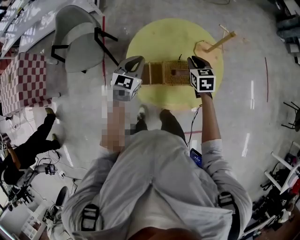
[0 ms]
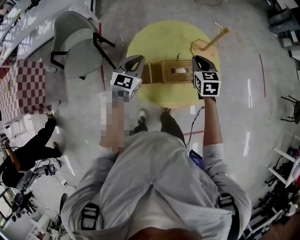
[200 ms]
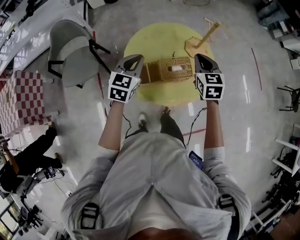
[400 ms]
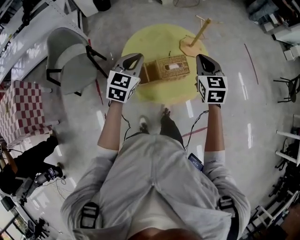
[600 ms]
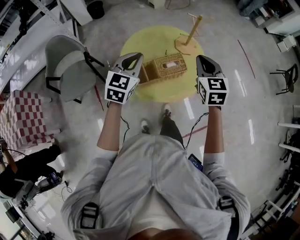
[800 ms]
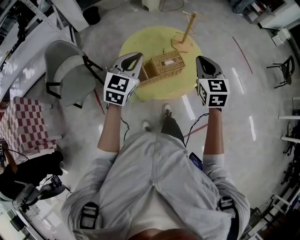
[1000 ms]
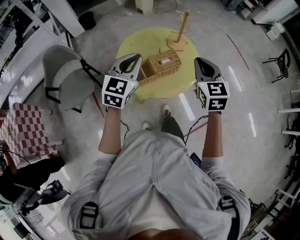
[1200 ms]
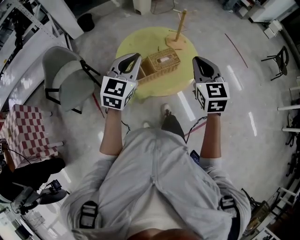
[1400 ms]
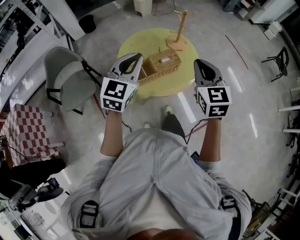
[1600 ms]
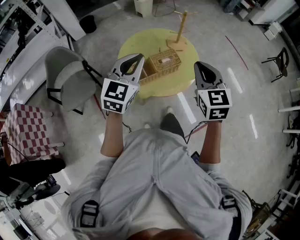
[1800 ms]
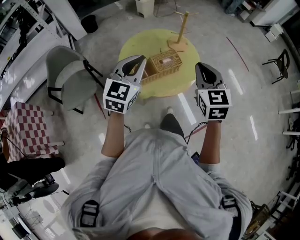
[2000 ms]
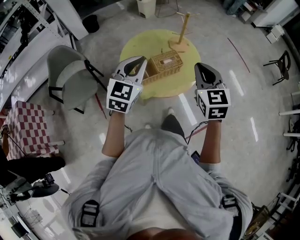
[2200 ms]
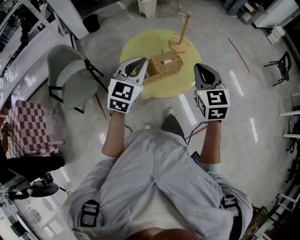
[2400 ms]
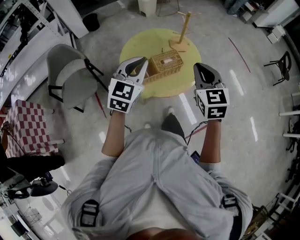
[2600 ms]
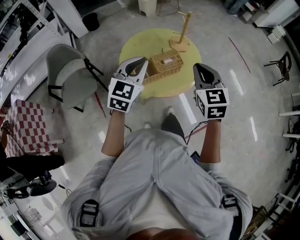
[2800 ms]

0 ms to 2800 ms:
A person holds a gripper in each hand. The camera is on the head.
0 ms to 1400 ms: The left gripper travels upward and backward by roughly 20 cm, and swivels about 30 degrees. The right gripper moves upward and backward, approximately 35 cm, and swivels roughly 30 degrees.
1400 ms to 2800 ms: The grippers stay close to where they were, moving slightly.

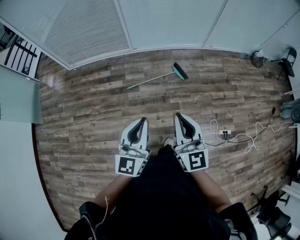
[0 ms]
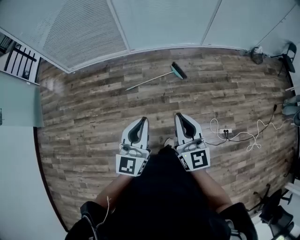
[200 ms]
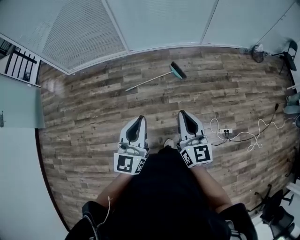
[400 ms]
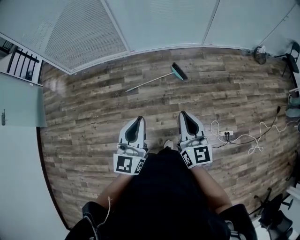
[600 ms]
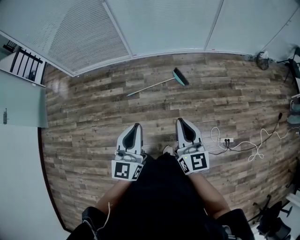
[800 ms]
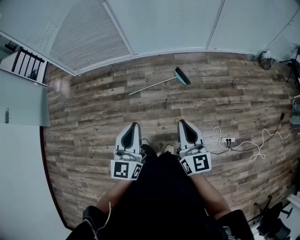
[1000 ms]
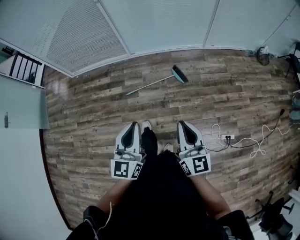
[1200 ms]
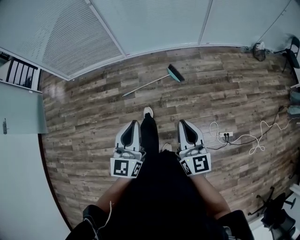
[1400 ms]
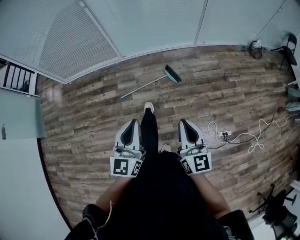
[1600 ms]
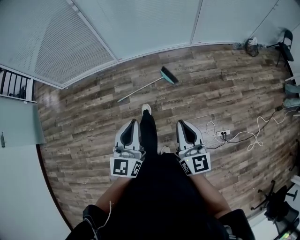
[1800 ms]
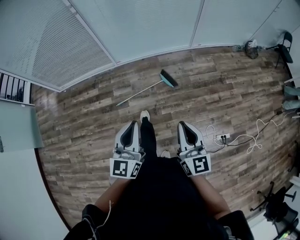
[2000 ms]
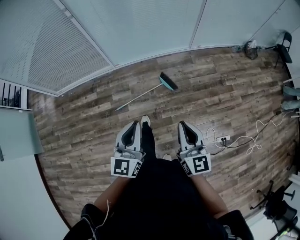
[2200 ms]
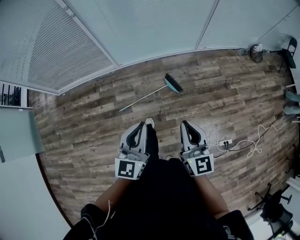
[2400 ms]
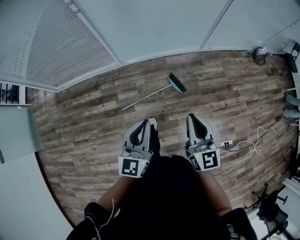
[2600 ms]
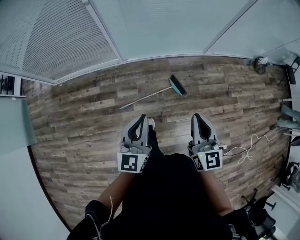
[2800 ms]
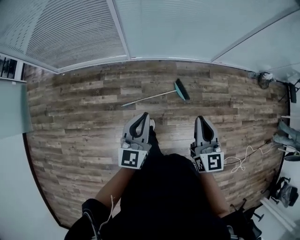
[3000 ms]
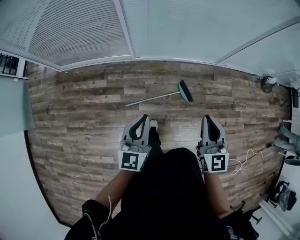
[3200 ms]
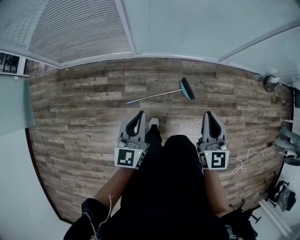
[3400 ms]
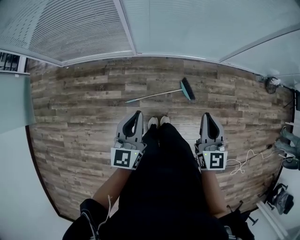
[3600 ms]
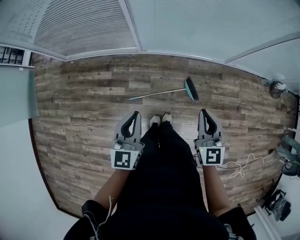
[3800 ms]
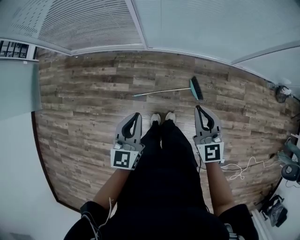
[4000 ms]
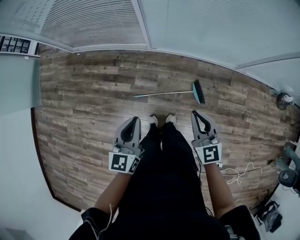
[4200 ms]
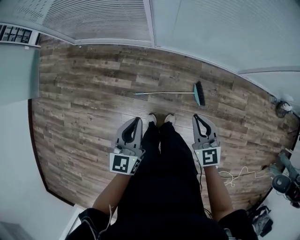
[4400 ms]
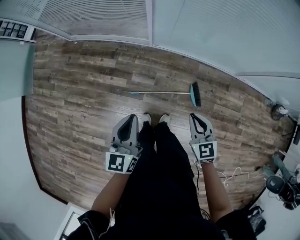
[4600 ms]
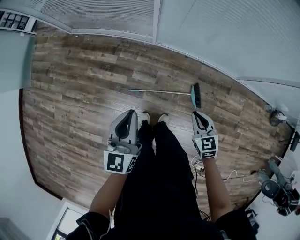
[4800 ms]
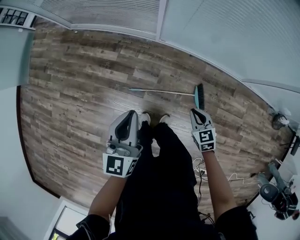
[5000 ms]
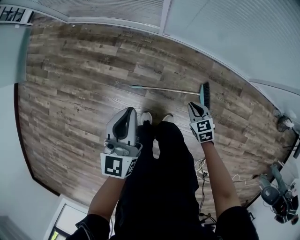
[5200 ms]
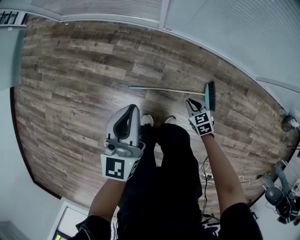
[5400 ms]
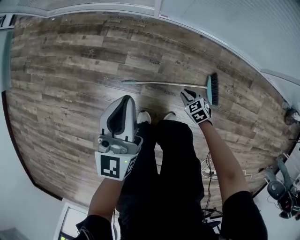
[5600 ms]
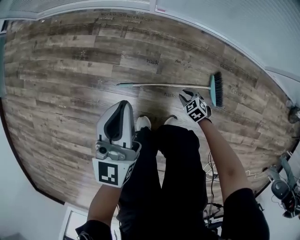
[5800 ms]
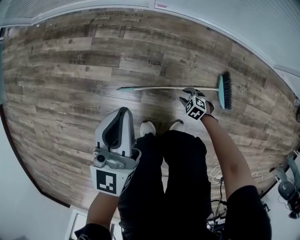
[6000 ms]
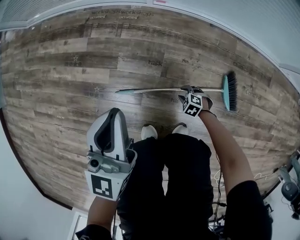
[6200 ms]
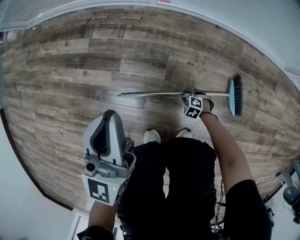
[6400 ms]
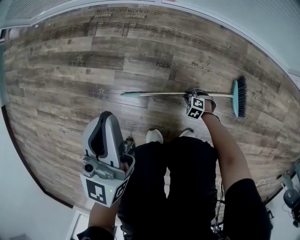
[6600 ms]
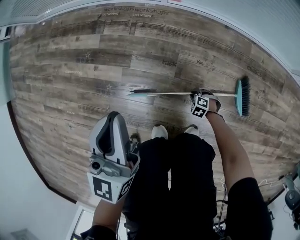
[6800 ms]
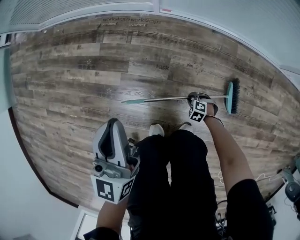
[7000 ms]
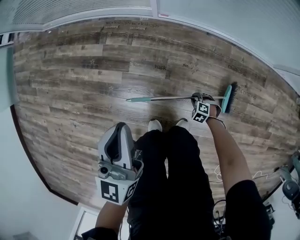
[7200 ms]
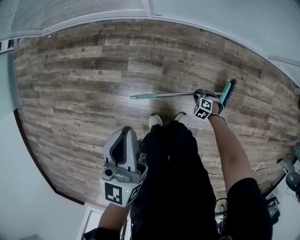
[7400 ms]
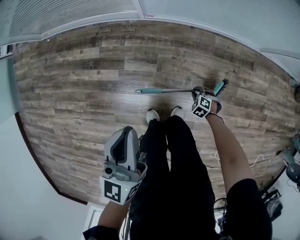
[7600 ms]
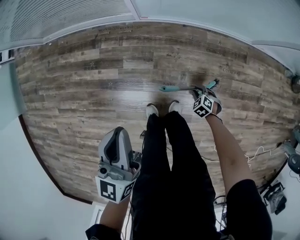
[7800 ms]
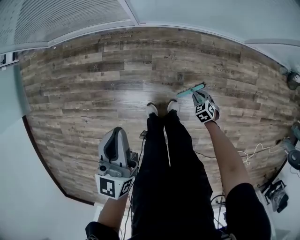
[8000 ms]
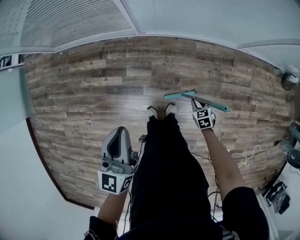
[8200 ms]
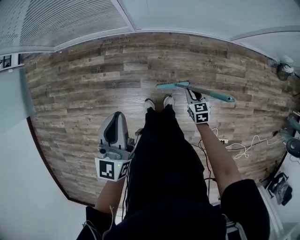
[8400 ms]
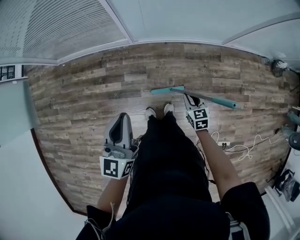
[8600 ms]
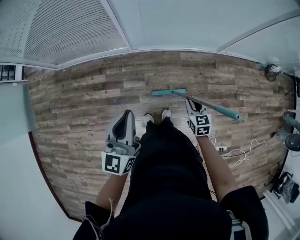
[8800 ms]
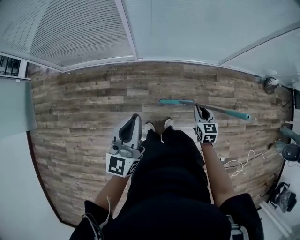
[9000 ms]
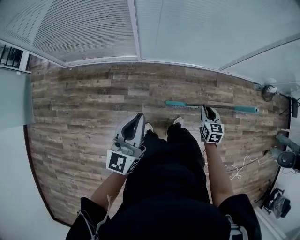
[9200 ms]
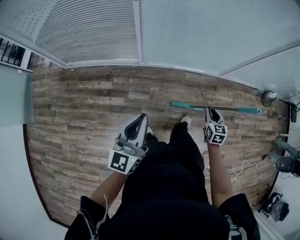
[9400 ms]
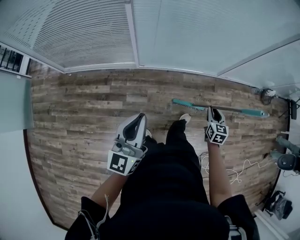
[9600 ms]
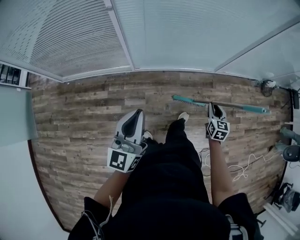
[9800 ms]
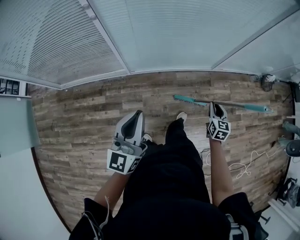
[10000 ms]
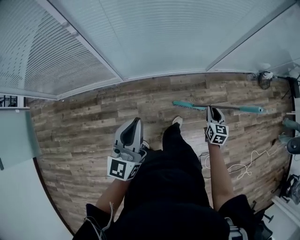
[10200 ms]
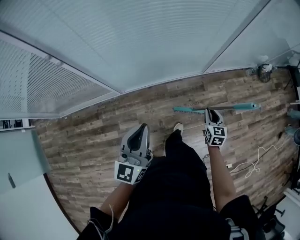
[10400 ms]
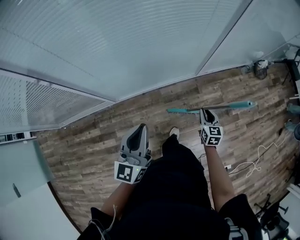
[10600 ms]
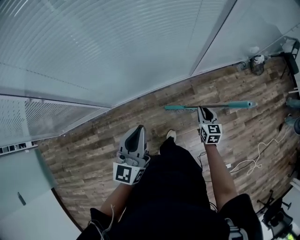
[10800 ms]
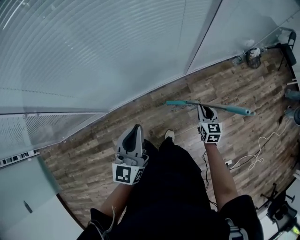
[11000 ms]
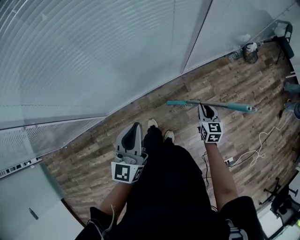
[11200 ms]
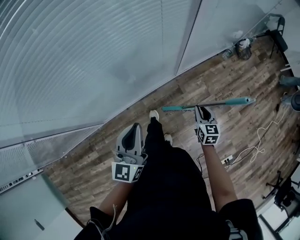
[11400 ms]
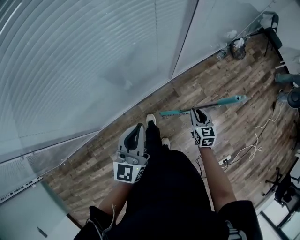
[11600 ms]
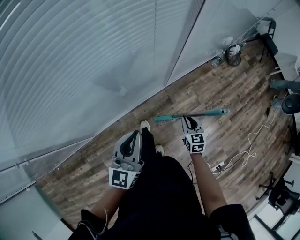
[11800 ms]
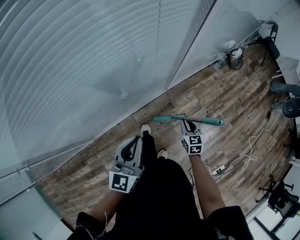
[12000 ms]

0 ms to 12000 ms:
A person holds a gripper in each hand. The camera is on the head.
0 ms to 1600 ms: The right gripper is displaced to the right by some 15 cm; the left gripper heads to the right and forward, covering roughly 15 cm.
1600 ms to 3000 ms: Both grippers move forward and to the left, approximately 35 cm.
3000 ms to 4400 ms: The left gripper shifts approximately 10 cm to the left and forward, while the right gripper shifts approximately 15 cm forward, downward and to the left, and changes its angle by roughly 30 degrees.
4400 ms to 6000 ms: The left gripper moves downward, about 35 cm, while the right gripper shifts some 80 cm downward, points its fingers approximately 50 degrees further downward, and opens its fingers.
6000 ms to 7600 ms: The two grippers go some 15 cm upward.
7600 ms to 9000 ms: The left gripper heads upward, covering about 30 cm, while the right gripper moves upward, about 50 cm, and tips its fingers upward by some 40 degrees.
9000 ms to 10400 ms: The left gripper moves forward and to the right, about 25 cm. The right gripper heads to the right and forward, covering approximately 30 cm, and changes its angle by roughly 20 degrees.
10400 ms to 12000 ms: The right gripper heads forward and to the right, covering approximately 20 cm. Meanwhile the left gripper goes some 35 cm forward and to the right, and changes its angle by about 20 degrees.

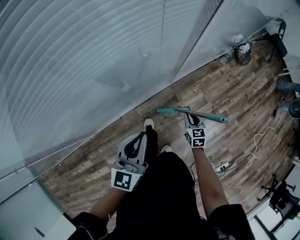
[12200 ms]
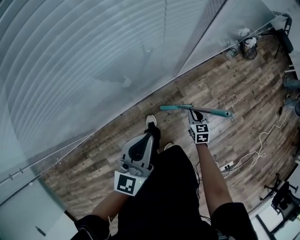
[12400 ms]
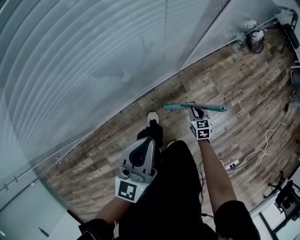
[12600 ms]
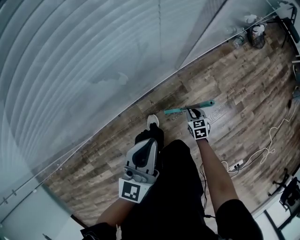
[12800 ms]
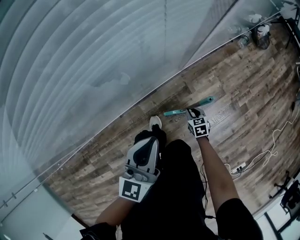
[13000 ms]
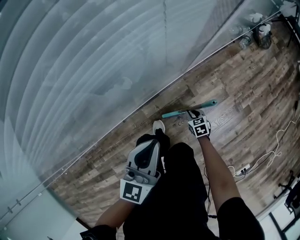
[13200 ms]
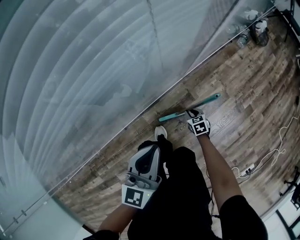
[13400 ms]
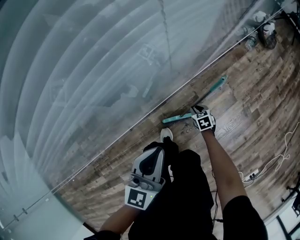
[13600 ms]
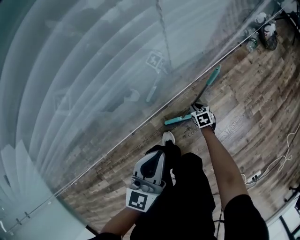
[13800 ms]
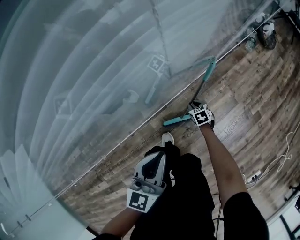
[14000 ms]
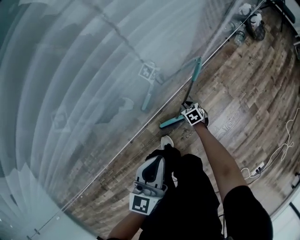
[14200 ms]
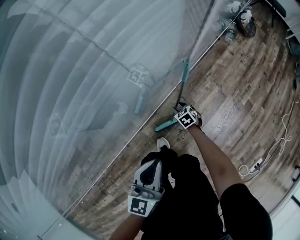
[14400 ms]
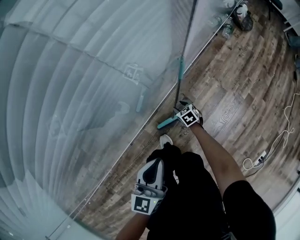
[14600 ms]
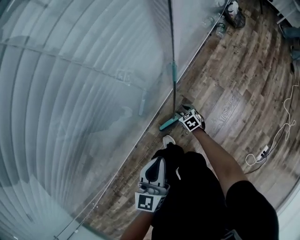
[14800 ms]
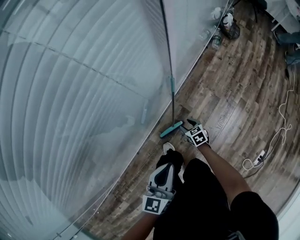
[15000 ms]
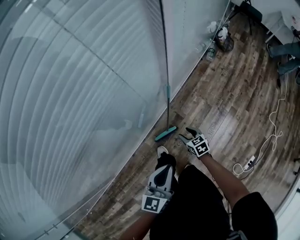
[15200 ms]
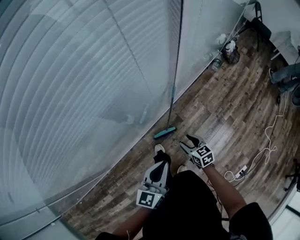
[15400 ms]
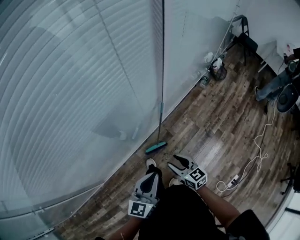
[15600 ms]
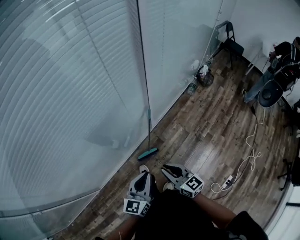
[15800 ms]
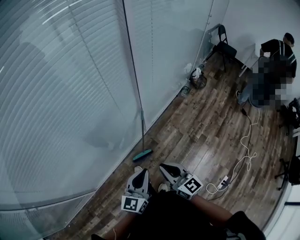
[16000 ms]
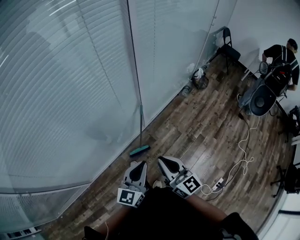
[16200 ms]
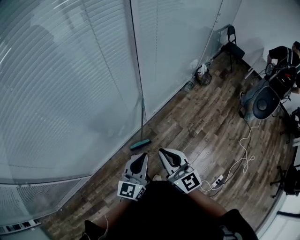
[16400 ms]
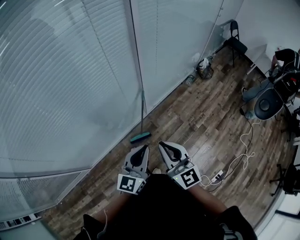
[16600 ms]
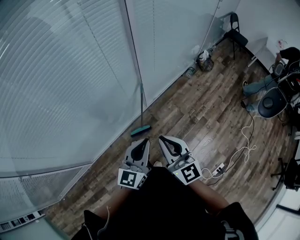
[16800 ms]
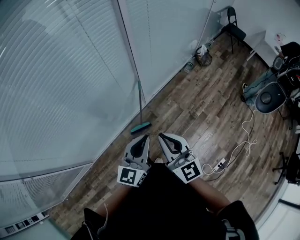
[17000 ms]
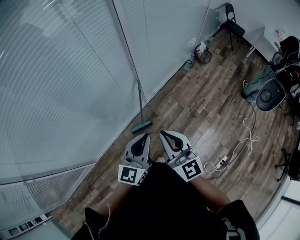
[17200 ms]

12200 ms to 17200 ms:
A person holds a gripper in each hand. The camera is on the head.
12200 ms to 13800 ms: The right gripper shifts about 35 cm downward, and changes its angle by approximately 20 degrees. Meanwhile the left gripper heads downward, covering about 25 cm.
13800 ms to 15600 ms: The right gripper moves upward, roughly 50 cm, tips its fingers upward by approximately 40 degrees, and opens up, while the left gripper heads upward and backward, covering approximately 25 cm.
15600 ms to 17200 ms: The right gripper heads upward, covering some 25 cm, swivels some 40 degrees, and closes its fingers. The left gripper is displaced to the right and upward by roughly 15 cm.

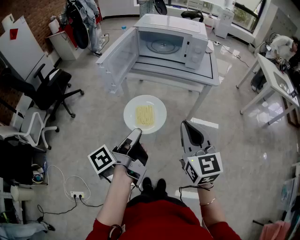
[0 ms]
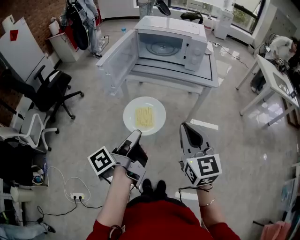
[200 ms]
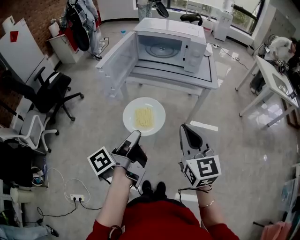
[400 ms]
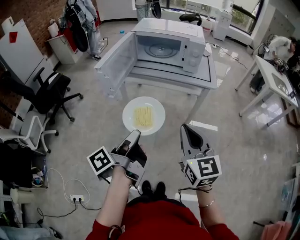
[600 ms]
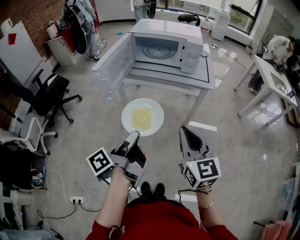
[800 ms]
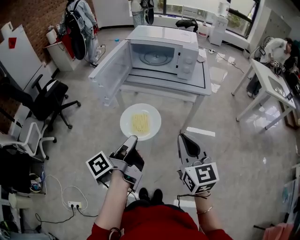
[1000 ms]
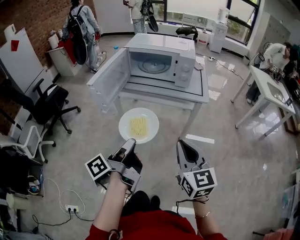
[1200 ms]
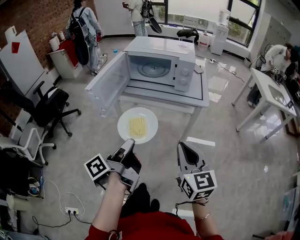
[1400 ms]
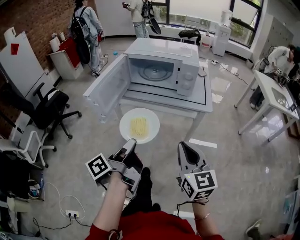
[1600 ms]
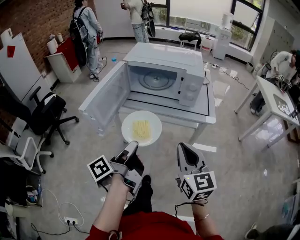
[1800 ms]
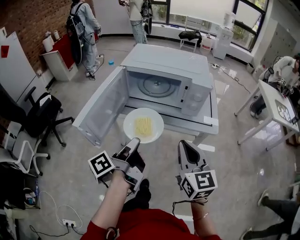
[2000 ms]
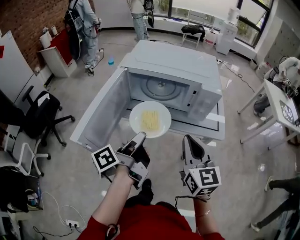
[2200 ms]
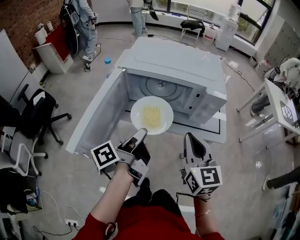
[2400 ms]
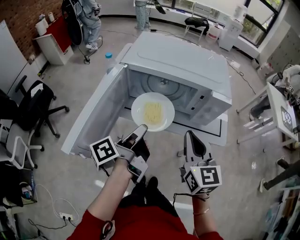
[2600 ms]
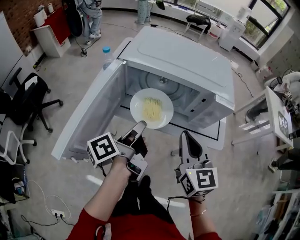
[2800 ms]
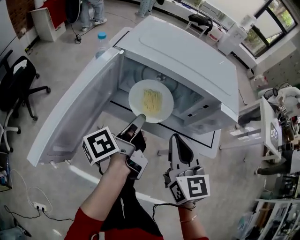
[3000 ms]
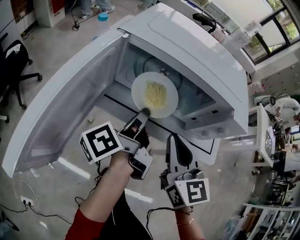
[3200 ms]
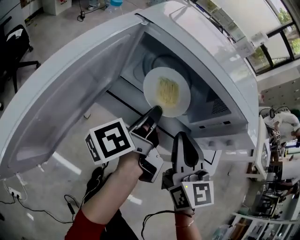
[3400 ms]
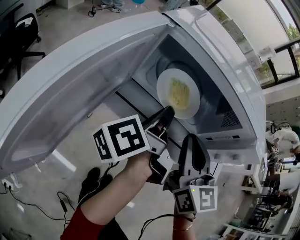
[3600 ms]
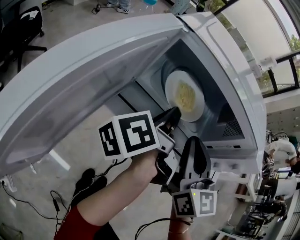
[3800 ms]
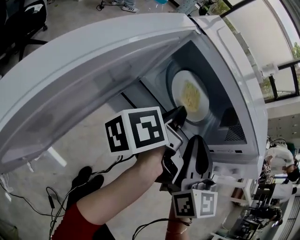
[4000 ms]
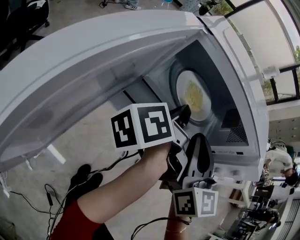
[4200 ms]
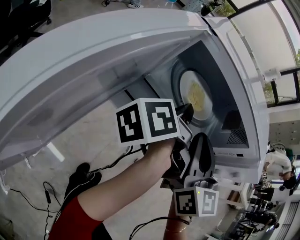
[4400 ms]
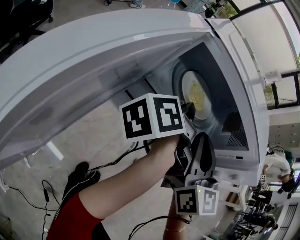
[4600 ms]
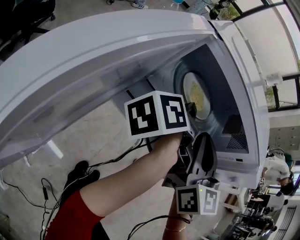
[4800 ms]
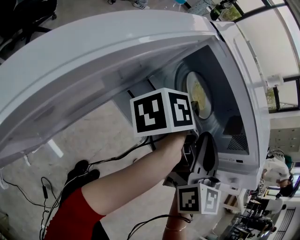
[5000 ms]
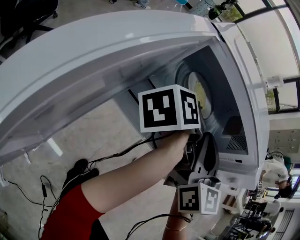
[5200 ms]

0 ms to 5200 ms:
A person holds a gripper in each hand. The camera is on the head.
0 ms to 1800 ms: Both grippers move forward, about 15 cm.
1800 ms to 3400 ms: The grippers both shift forward by approximately 30 cm.
3400 ms to 5200 ms: The grippers both shift forward by roughly 10 cm.
